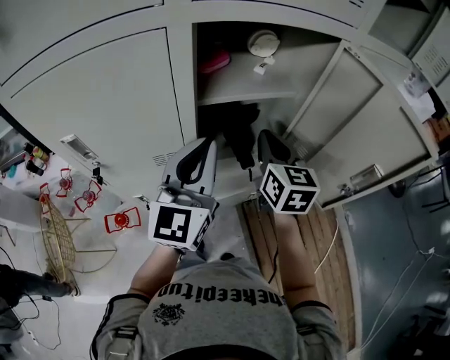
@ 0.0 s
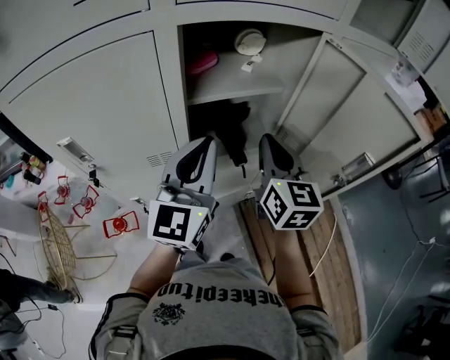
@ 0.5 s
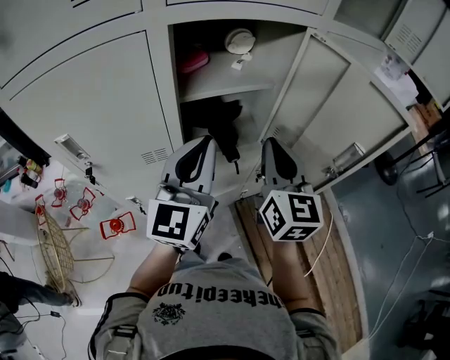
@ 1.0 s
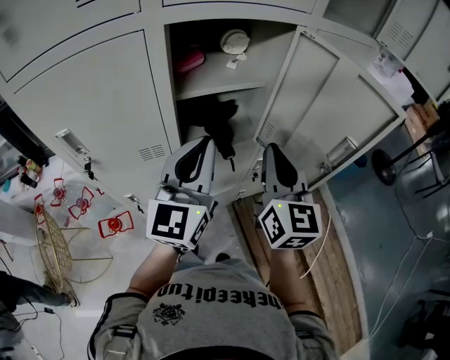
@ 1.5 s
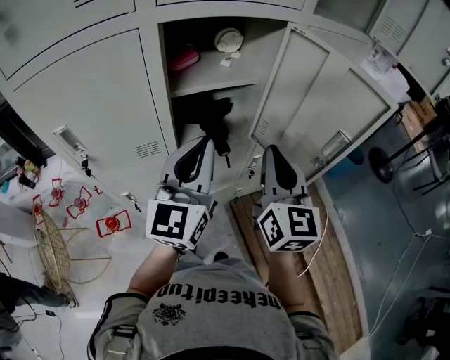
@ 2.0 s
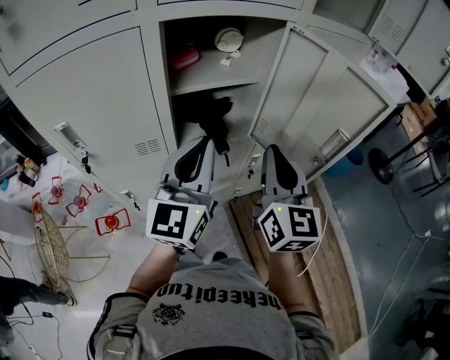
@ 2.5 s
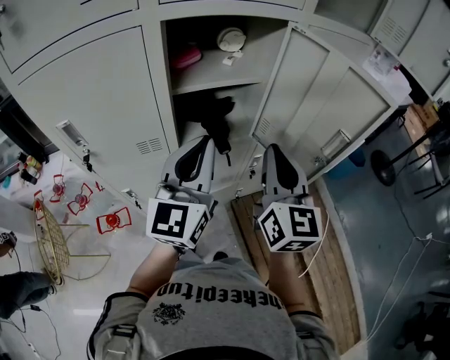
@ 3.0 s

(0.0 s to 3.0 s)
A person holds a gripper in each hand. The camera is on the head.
0.0 s - 1.5 s: The right gripper shifts about 15 cm backward, upward and to the right; the left gripper changes place by roughly 5 cm.
1.5 s - 3.0 s: The grippers stay close to where they were, moving slightly.

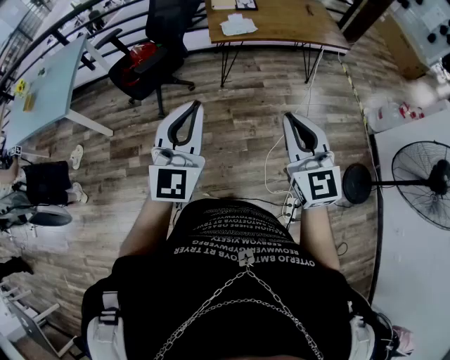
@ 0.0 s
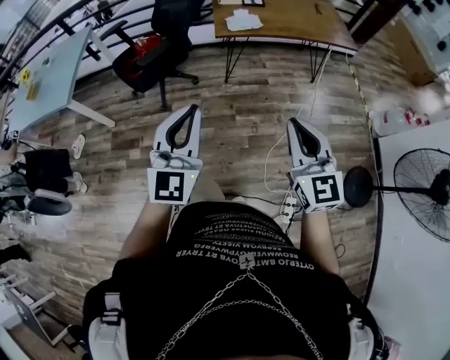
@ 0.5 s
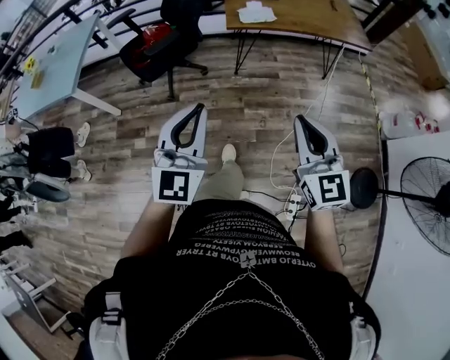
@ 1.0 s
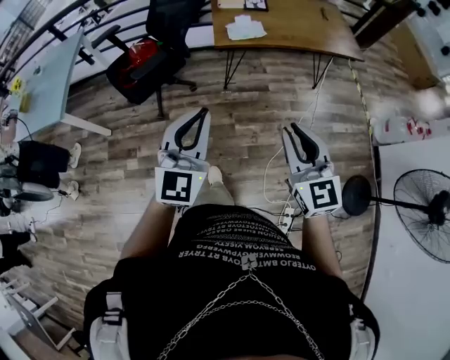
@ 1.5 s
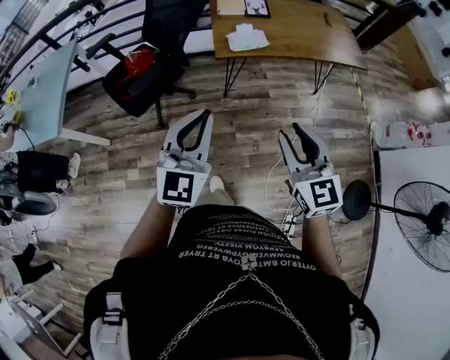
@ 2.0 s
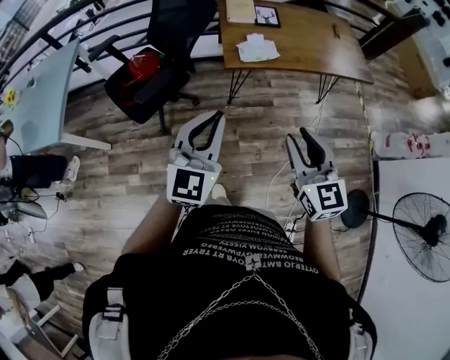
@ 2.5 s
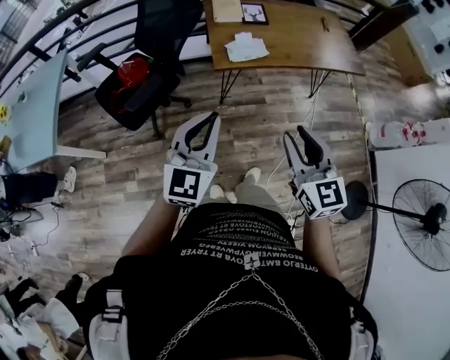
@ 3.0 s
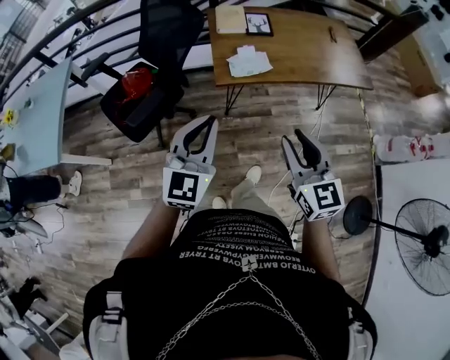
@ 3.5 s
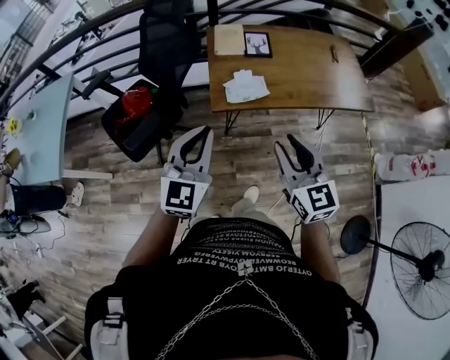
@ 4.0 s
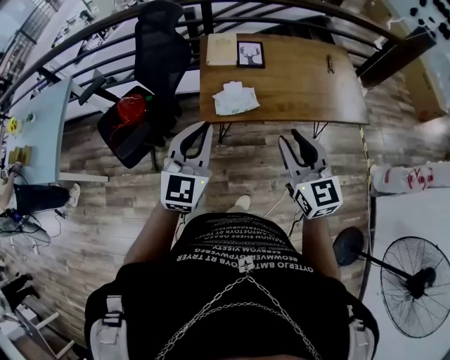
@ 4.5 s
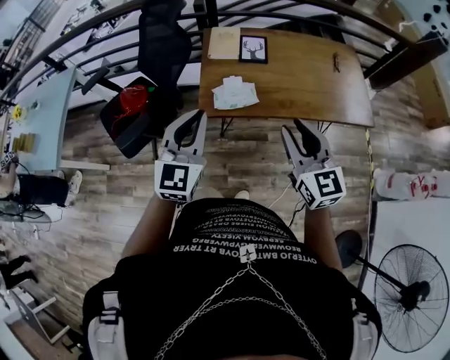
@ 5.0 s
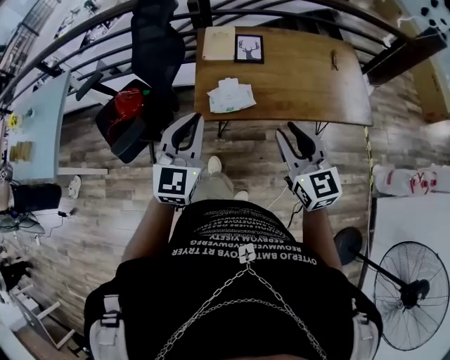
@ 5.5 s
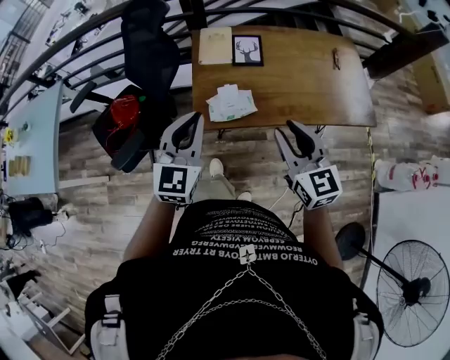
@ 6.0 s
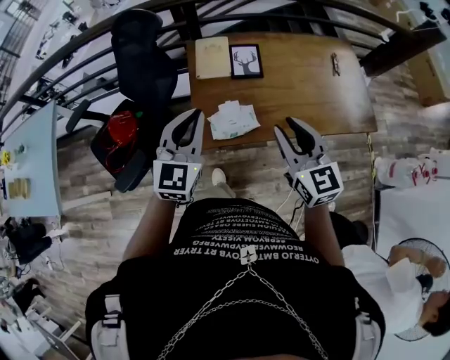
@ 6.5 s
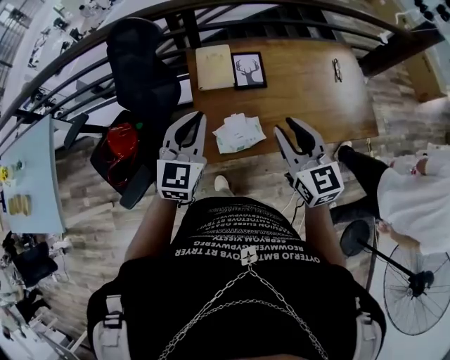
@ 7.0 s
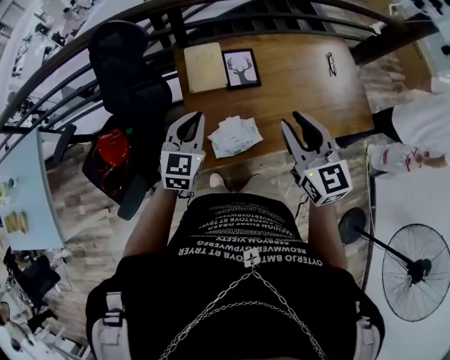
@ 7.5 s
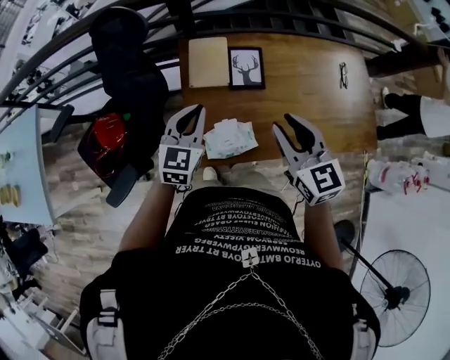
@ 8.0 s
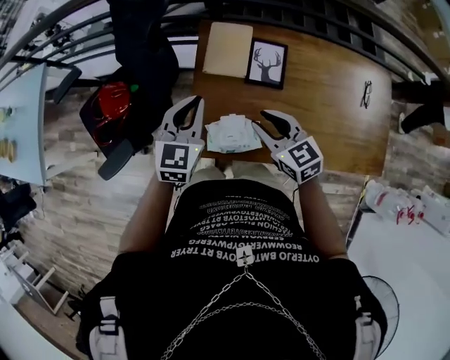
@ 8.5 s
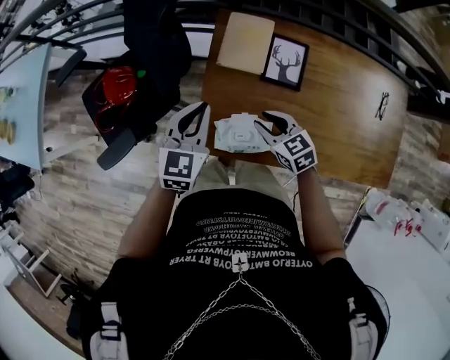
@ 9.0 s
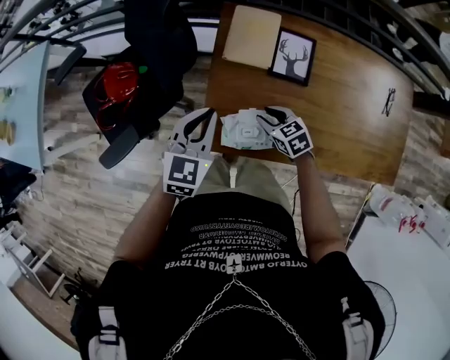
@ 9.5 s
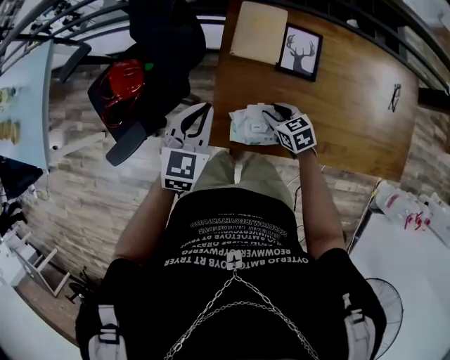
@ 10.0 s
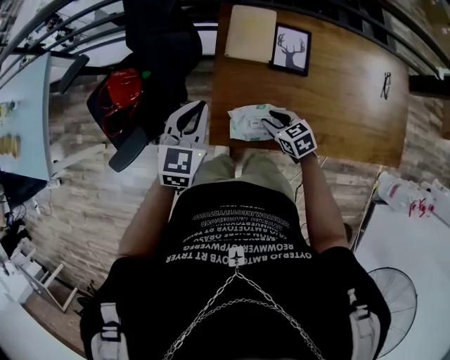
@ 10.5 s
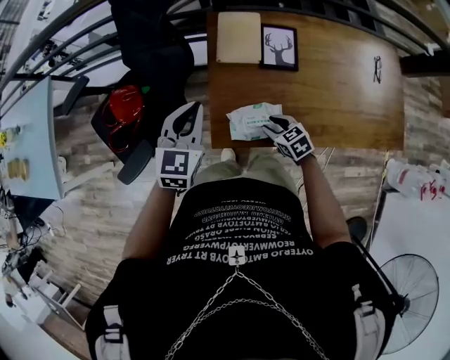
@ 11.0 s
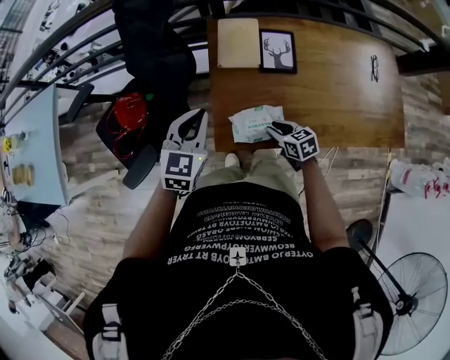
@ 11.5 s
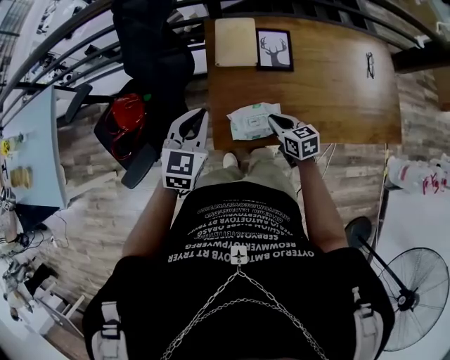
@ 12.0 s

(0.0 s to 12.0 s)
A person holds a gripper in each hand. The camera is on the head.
0.0 s - 2.0 s: The two grippers go some 20 cm forward. The right gripper opens.
2.0 s - 4.0 s: Both grippers move forward, about 25 cm.
4.0 s - 6.0 s: The two grippers go roughly 20 cm forward and to the right.
6.0 s - 8.0 s: The left gripper moves forward and downward, roughly 25 cm. The right gripper is displaced forward by about 20 cm.
8.0 s - 10.0 s: The left gripper goes some 10 cm to the left and downward; the right gripper travels downward by about 35 cm, and swivels roughly 40 degrees.
10.0 s - 12.0 s: The left gripper shifts by approximately 5 cm. Meanwhile the right gripper heads upward and backward, covering about 10 cm, turns by roughly 20 degrees, and closes up.

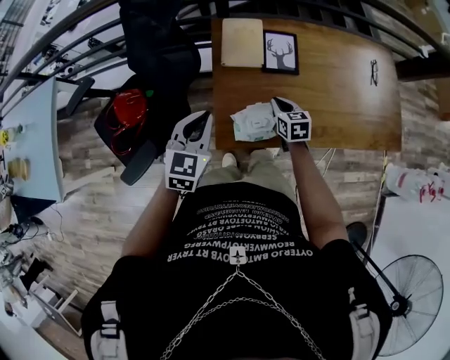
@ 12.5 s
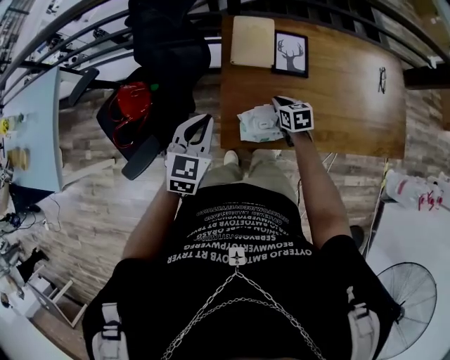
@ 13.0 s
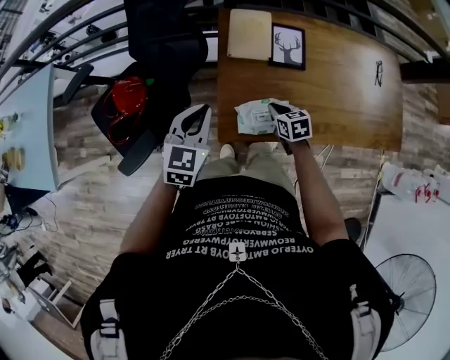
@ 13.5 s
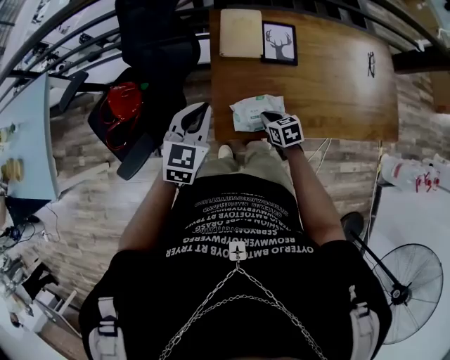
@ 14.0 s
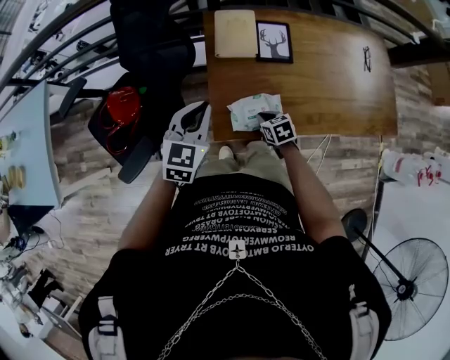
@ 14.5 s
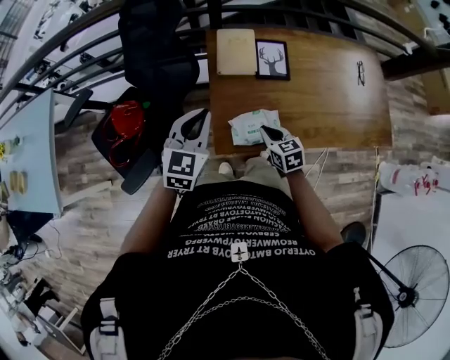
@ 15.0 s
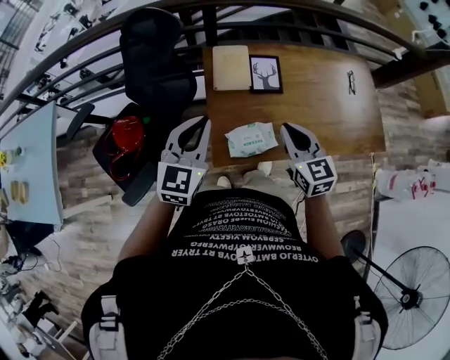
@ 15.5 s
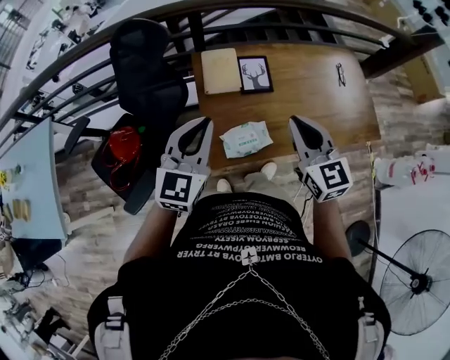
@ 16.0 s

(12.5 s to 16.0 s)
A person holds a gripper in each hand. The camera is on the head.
12.5 s - 14.5 s: The right gripper heads backward, downward and to the left, covering approximately 10 cm.
14.5 s - 16.0 s: The left gripper moves upward, some 15 cm. The right gripper travels upward by about 40 cm, and tips its fingers upward by approximately 40 degrees.

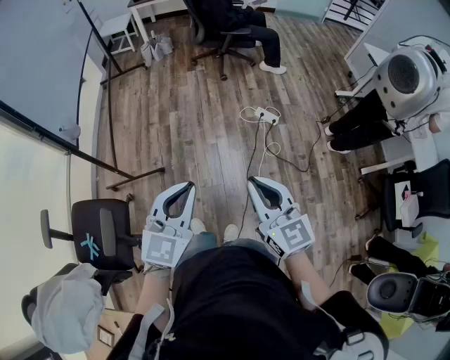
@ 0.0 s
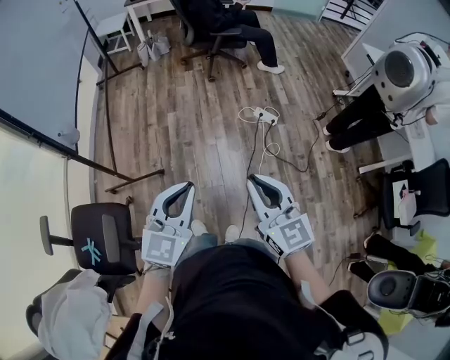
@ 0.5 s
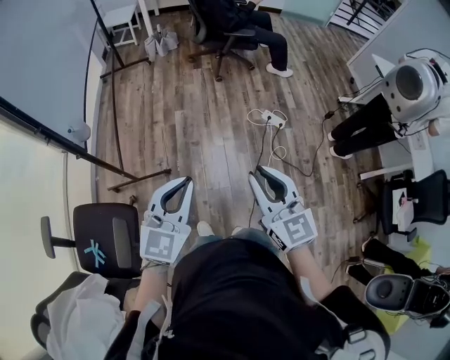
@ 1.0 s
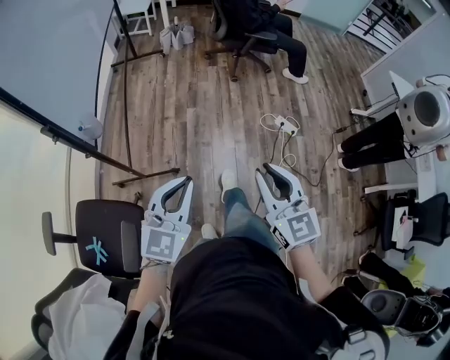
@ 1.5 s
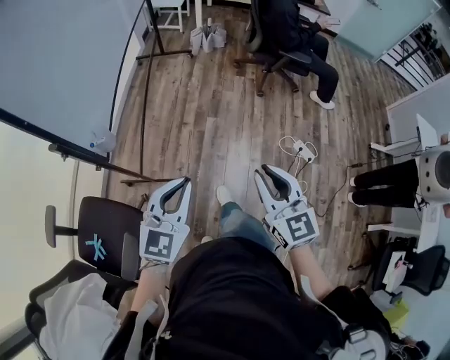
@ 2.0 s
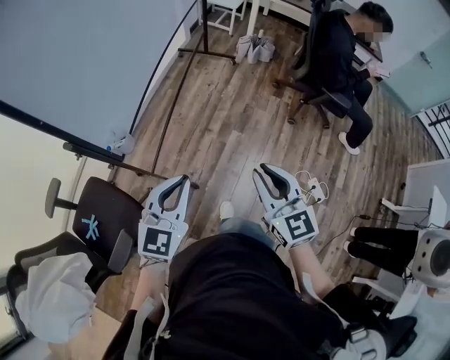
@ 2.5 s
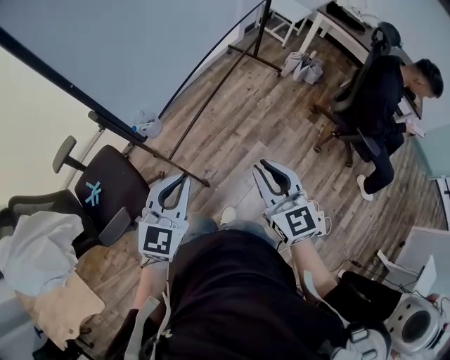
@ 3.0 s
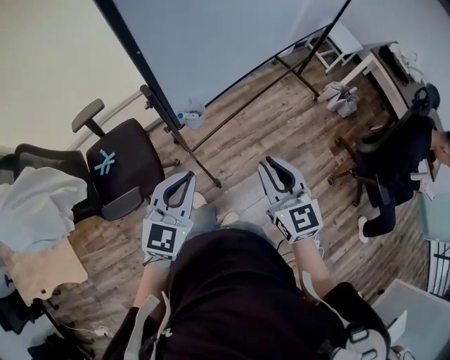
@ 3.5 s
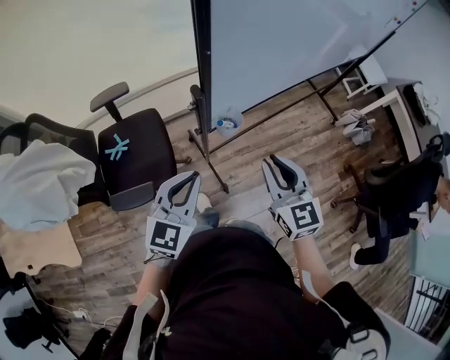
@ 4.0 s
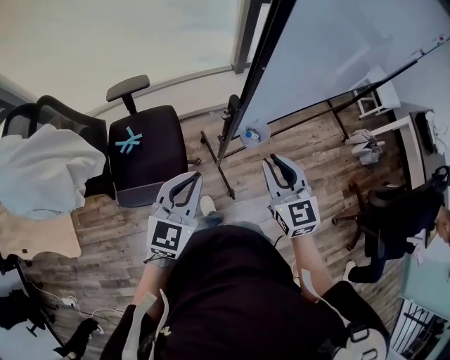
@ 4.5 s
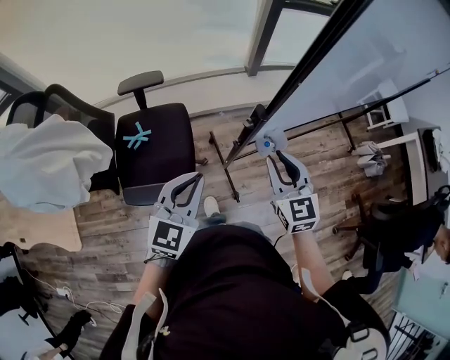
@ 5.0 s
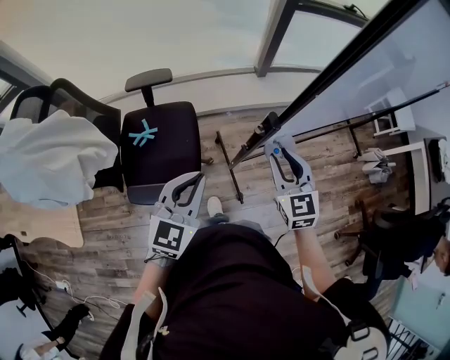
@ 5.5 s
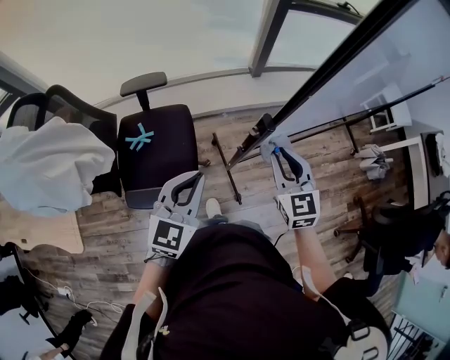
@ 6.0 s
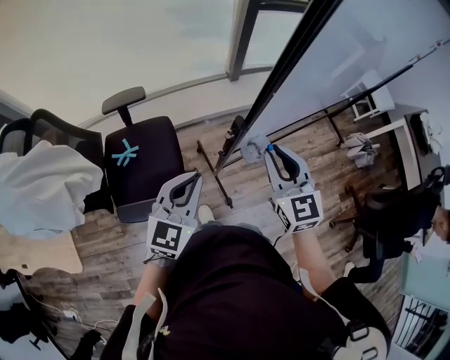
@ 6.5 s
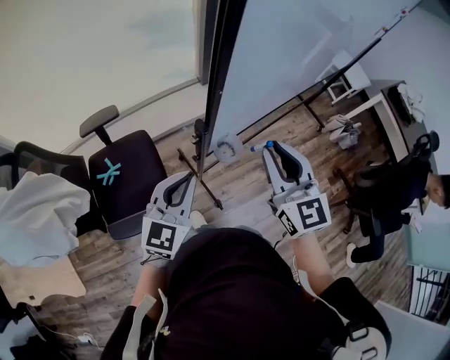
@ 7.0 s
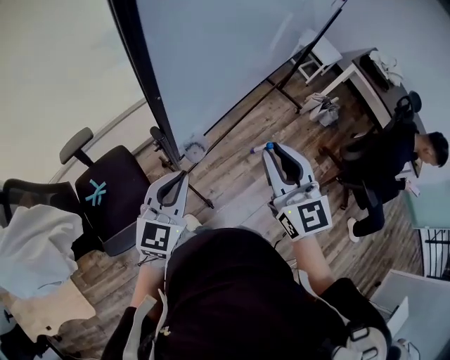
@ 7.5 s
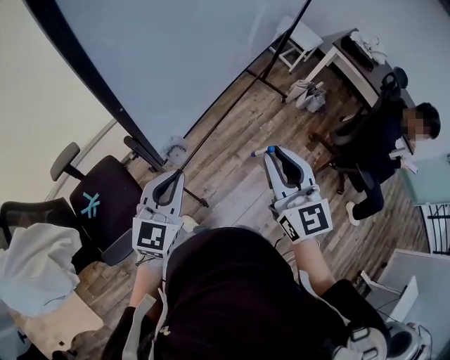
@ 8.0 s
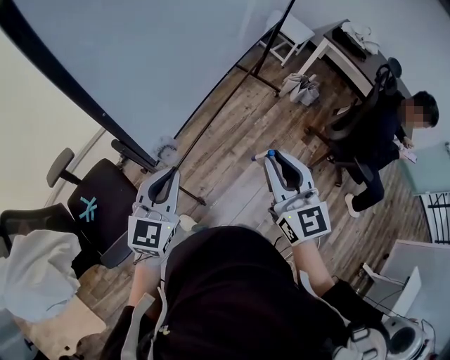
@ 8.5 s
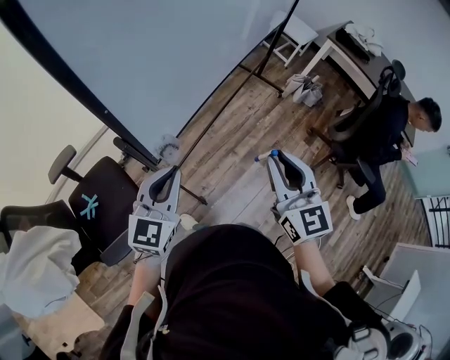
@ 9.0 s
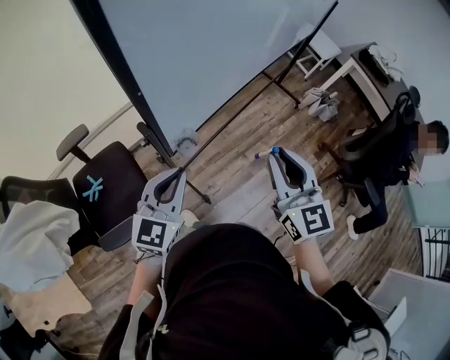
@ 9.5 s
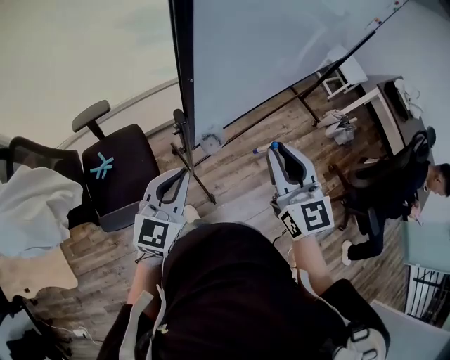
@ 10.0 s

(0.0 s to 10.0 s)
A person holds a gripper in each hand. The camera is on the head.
0.0 s - 2.0 s: The two grippers go approximately 35 cm forward and to the left.
2.0 s - 4.0 s: The left gripper ends up approximately 25 cm from where it was, and swivels roughly 60 degrees. Meanwhile the right gripper ends up roughly 35 cm from where it was, and changes its angle by some 60 degrees.
4.0 s - 6.0 s: The right gripper shifts approximately 15 cm forward and to the left. Meanwhile the left gripper shifts approximately 15 cm to the left and forward.
6.0 s - 8.0 s: The left gripper shifts by about 20 cm, and changes its angle by about 30 degrees, while the right gripper changes place by some 30 cm, and turns by approximately 30 degrees.
8.0 s - 10.0 s: The two grippers go some 10 cm to the left.
